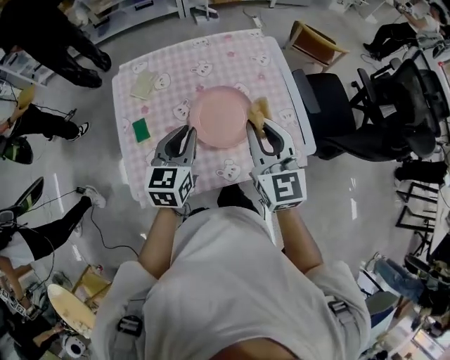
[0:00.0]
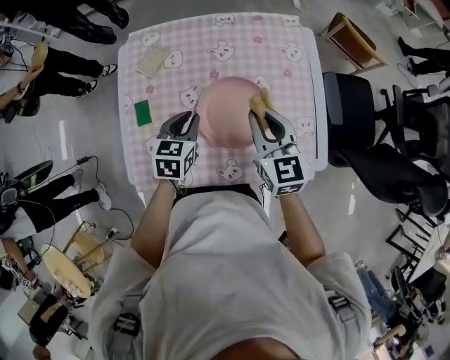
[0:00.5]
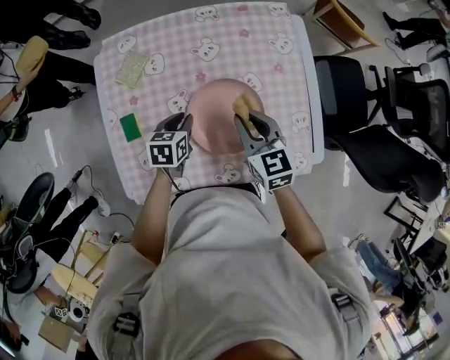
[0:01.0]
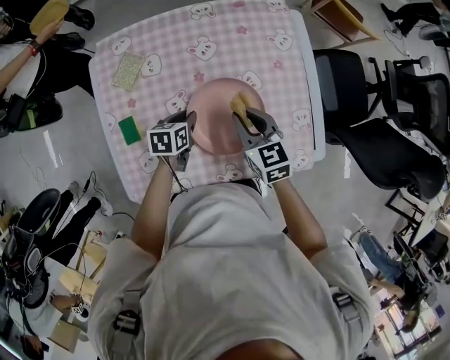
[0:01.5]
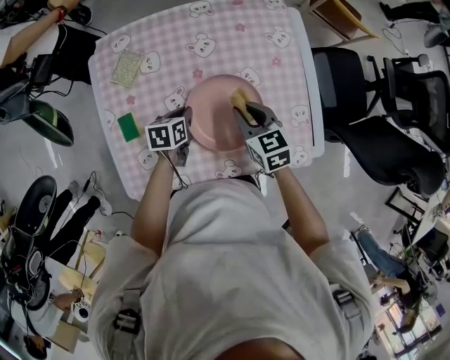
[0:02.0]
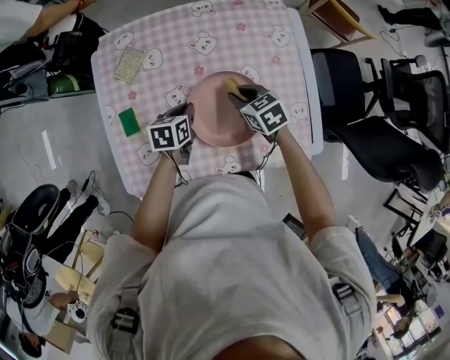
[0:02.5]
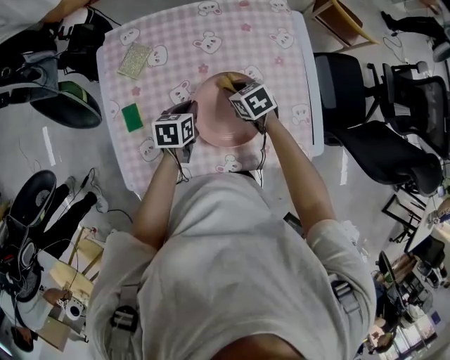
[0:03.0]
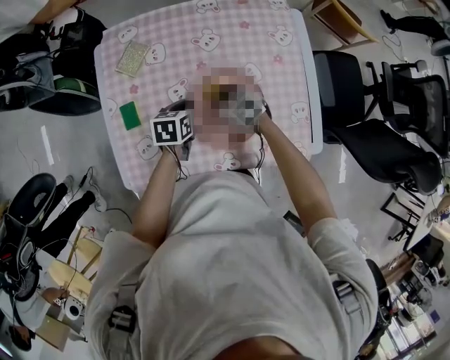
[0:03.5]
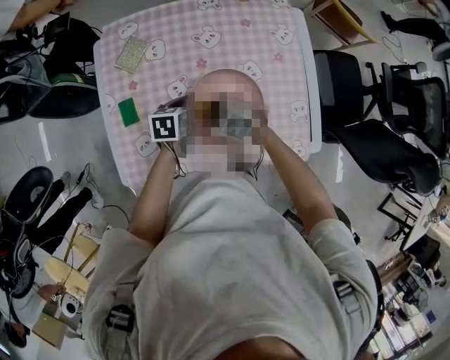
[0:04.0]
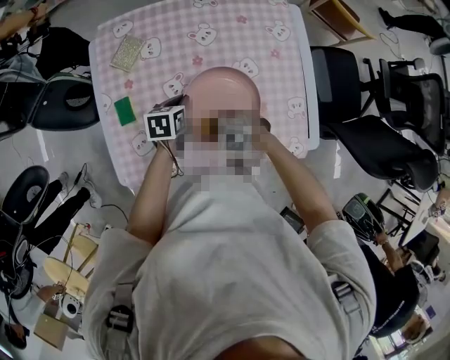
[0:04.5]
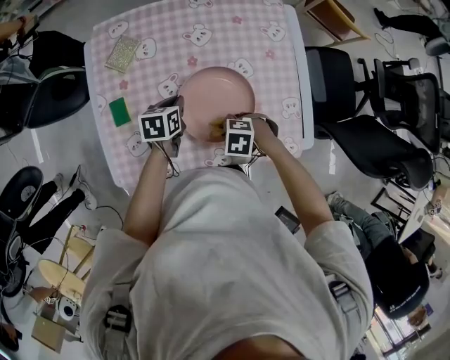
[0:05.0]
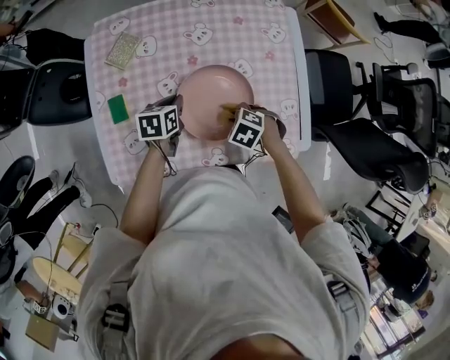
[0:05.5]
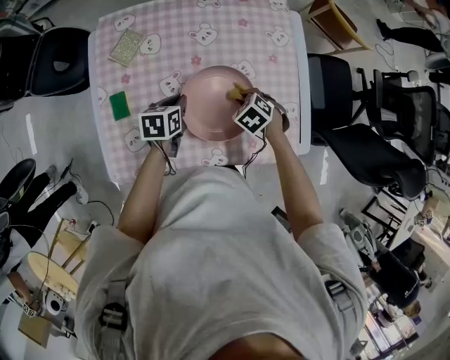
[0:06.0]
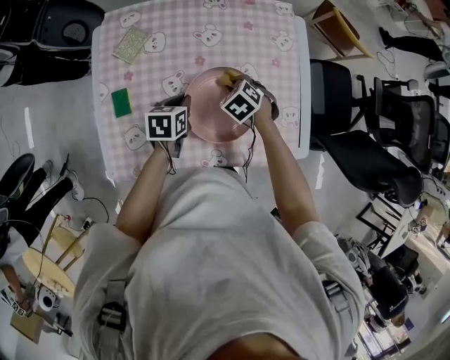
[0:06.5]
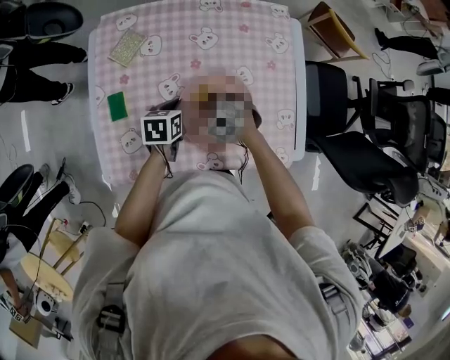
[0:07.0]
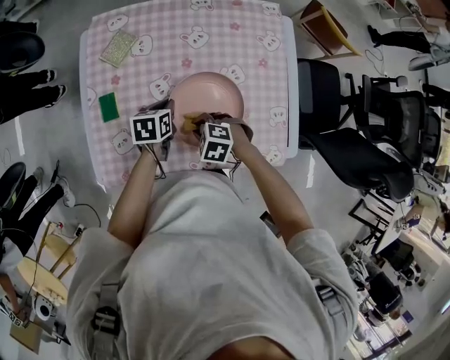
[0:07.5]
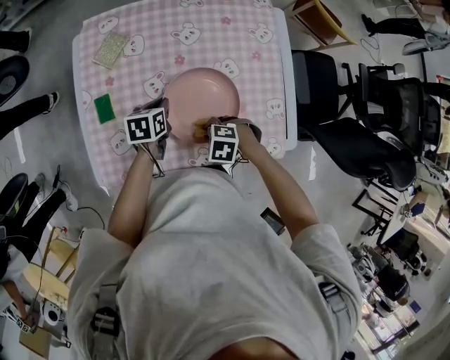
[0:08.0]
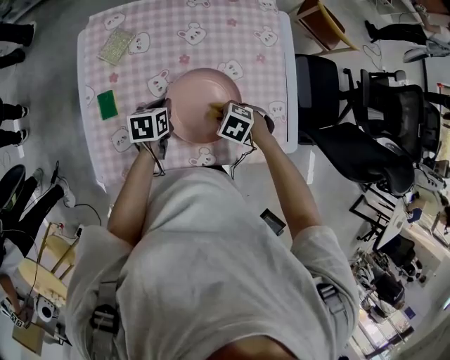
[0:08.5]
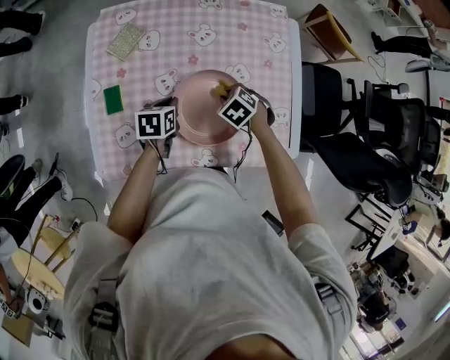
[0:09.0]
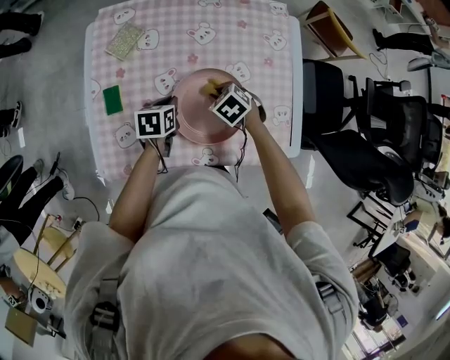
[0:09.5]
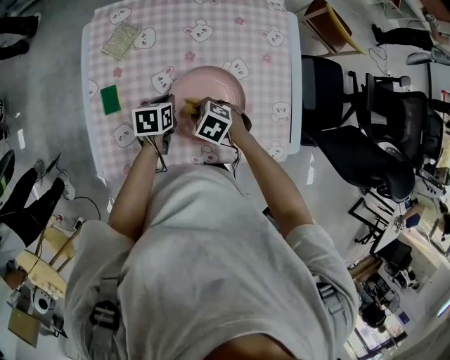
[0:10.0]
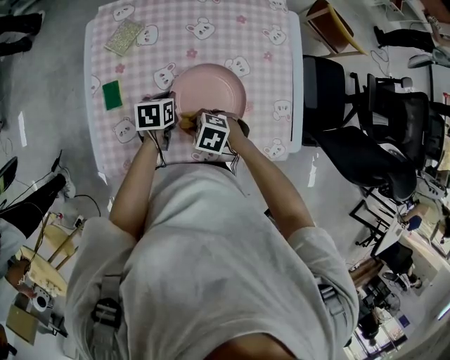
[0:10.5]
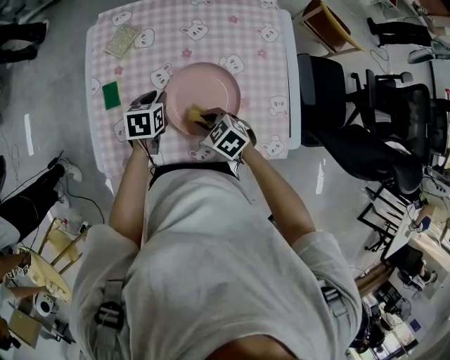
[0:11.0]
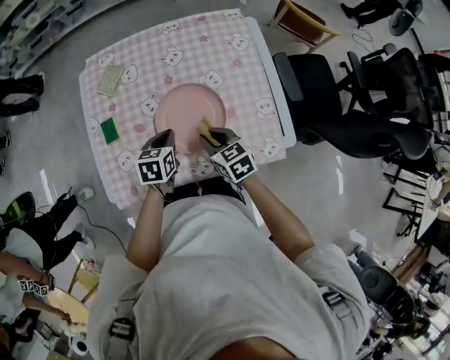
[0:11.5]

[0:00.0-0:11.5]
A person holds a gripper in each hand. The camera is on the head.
0:00.0 to 0:02.0: The right gripper moves downward and forward, about 25 cm, and angles its fingers downward, by some 30 degrees, while the left gripper is displaced downward by roughly 25 cm, and turns by some 40 degrees.
0:02.0 to 0:04.0: The right gripper ends up about 15 cm from where it was, and swivels approximately 50 degrees.
0:04.0 to 0:06.0: The right gripper shifts by about 15 cm, and rotates approximately 30 degrees.
0:06.0 to 0:07.5: The right gripper ends up approximately 15 cm from where it was, and swivels about 30 degrees.
0:07.5 to 0:09.5: The right gripper moves some 10 cm, and swivels approximately 30 degrees.
0:09.5 to 0:11.5: The right gripper moves some 15 cm, and rotates some 40 degrees; the left gripper changes place by some 10 cm.

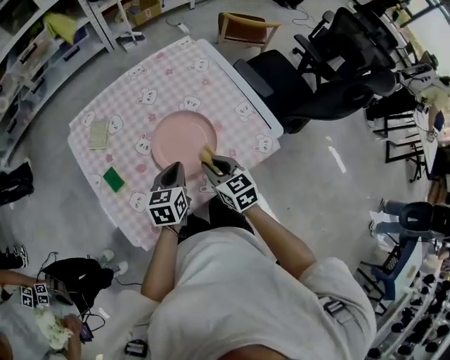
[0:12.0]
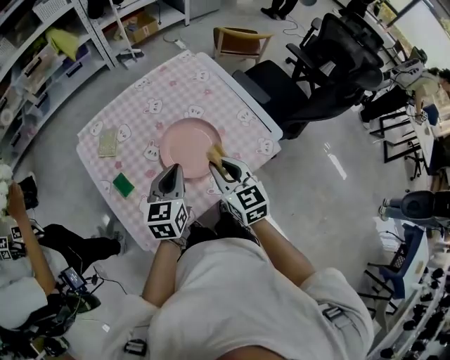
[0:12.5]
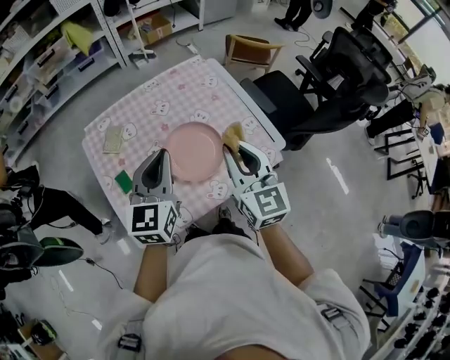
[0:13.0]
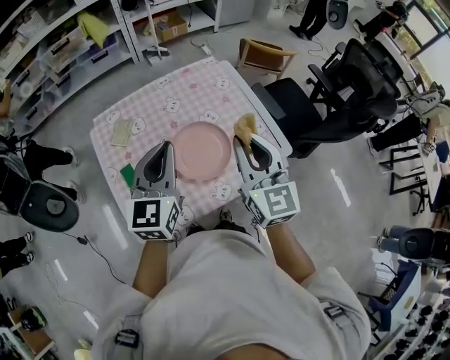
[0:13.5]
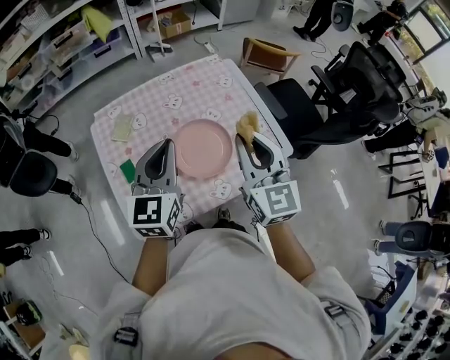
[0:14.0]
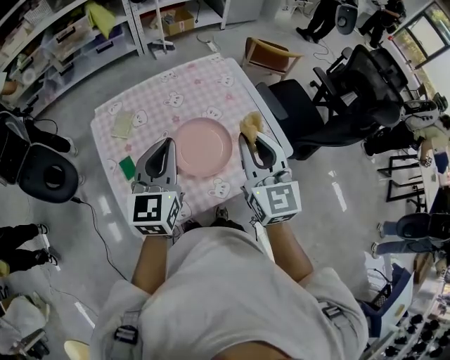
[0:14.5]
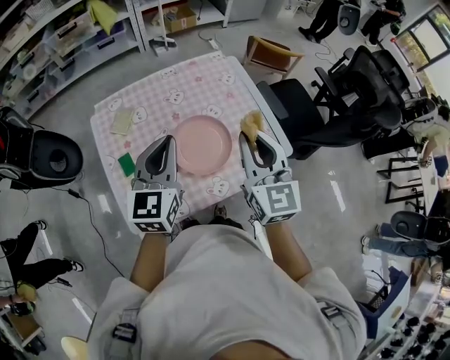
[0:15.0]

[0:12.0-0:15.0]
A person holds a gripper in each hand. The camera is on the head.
0:12.0 to 0:13.5: The two grippers go approximately 25 cm upward. The left gripper rotates some 30 degrees, while the right gripper angles its fingers upward, by roughly 30 degrees.
0:13.5 to 0:15.0: The grippers move only a little.

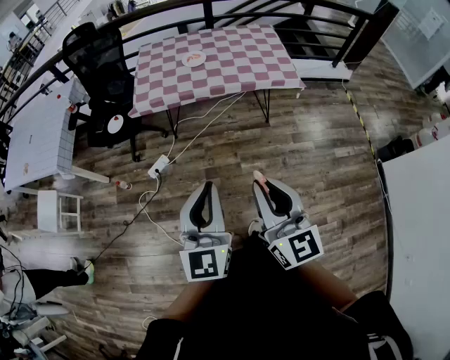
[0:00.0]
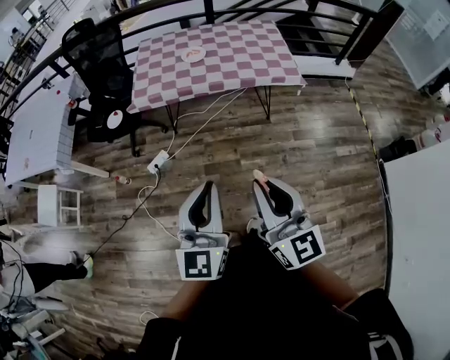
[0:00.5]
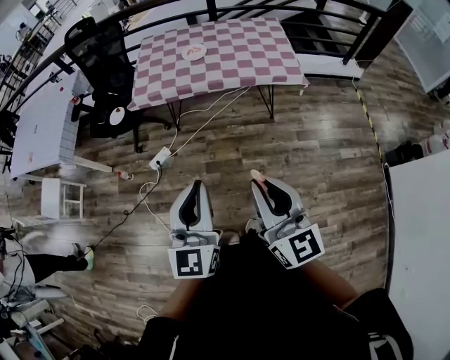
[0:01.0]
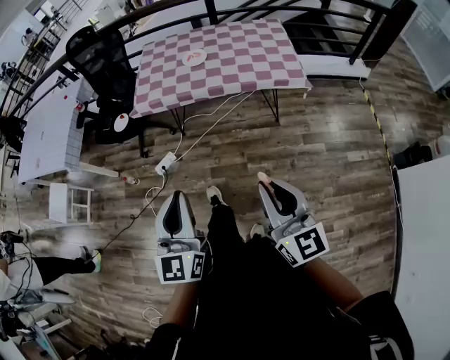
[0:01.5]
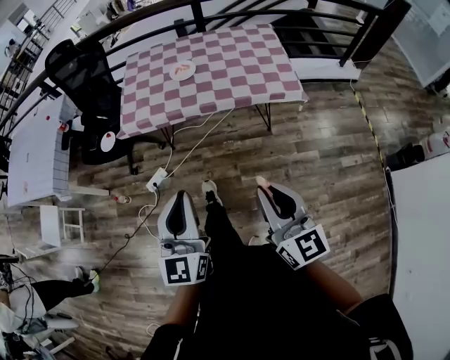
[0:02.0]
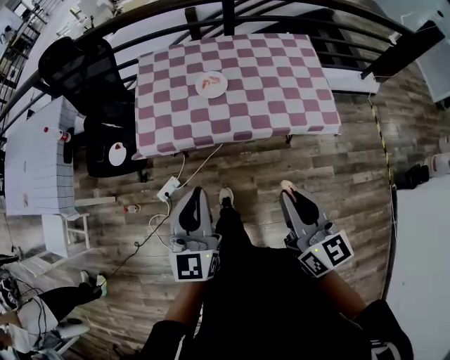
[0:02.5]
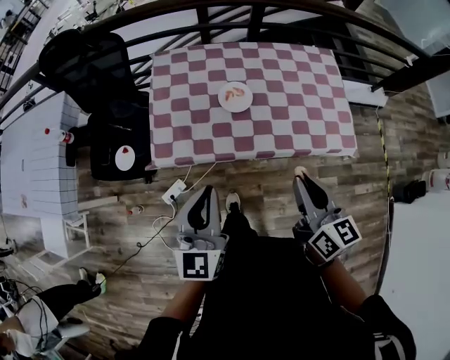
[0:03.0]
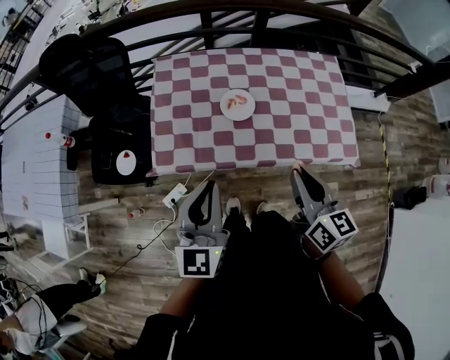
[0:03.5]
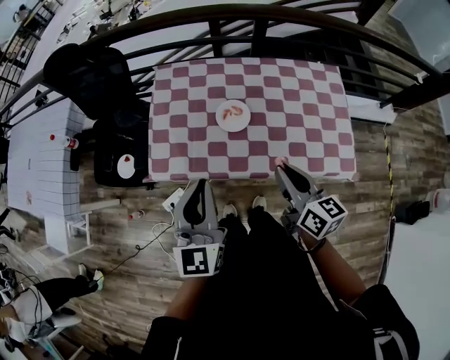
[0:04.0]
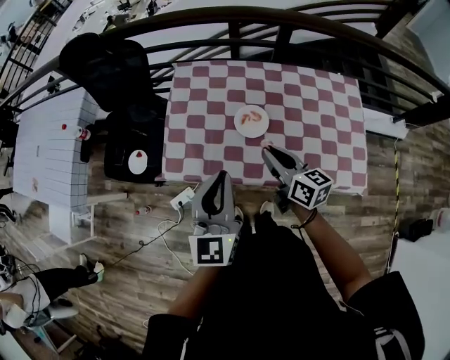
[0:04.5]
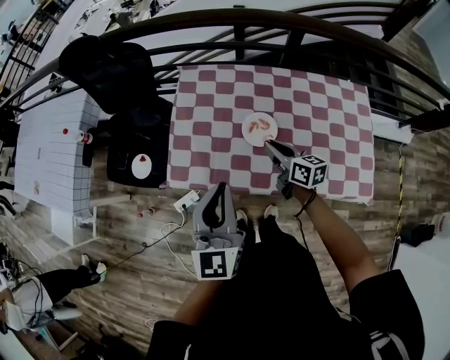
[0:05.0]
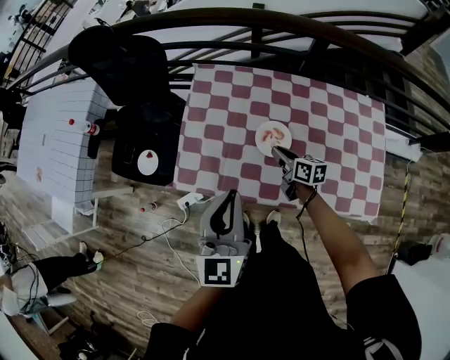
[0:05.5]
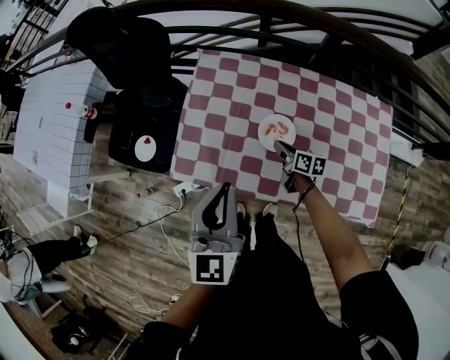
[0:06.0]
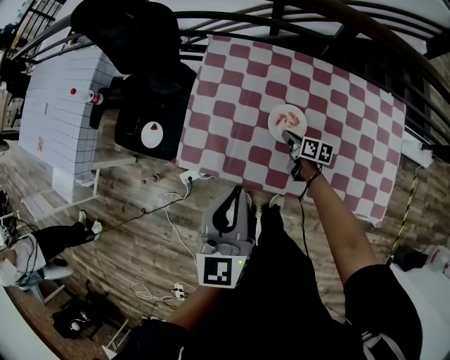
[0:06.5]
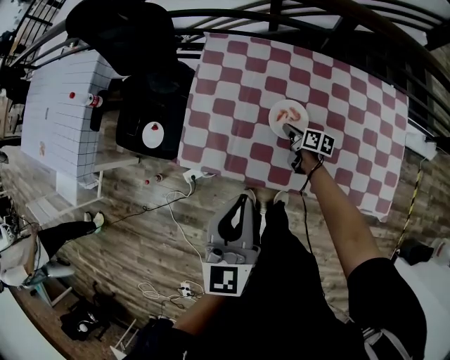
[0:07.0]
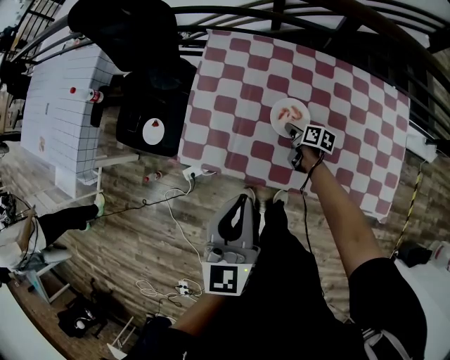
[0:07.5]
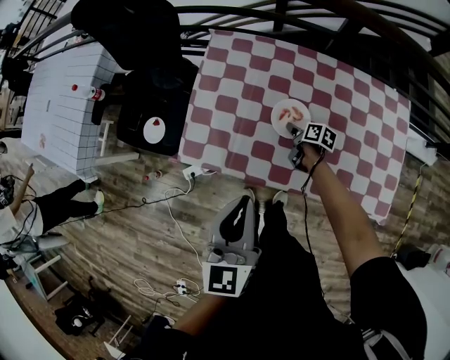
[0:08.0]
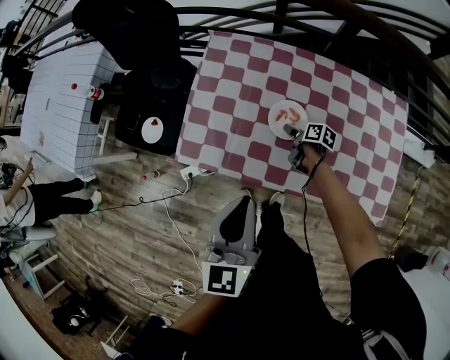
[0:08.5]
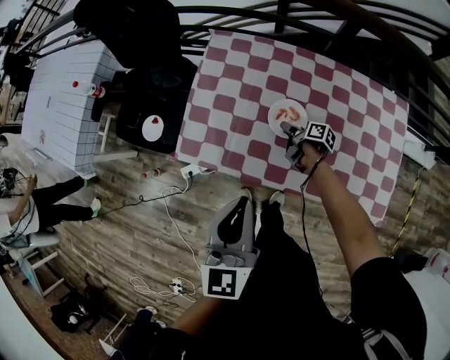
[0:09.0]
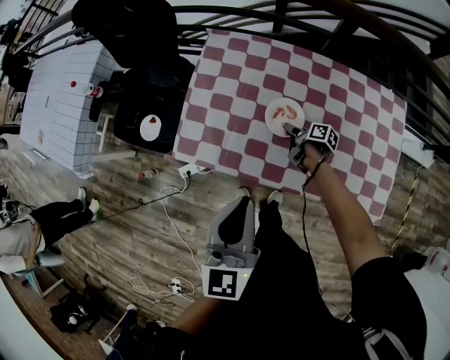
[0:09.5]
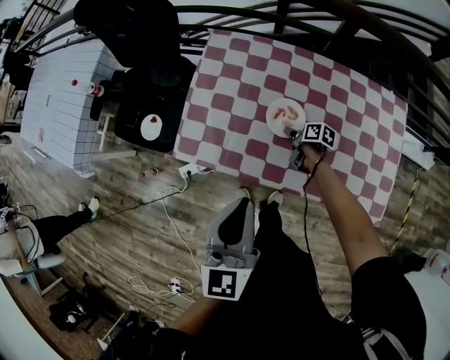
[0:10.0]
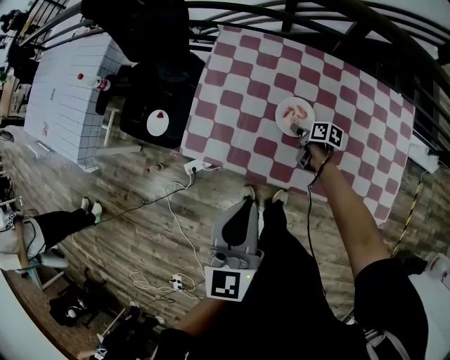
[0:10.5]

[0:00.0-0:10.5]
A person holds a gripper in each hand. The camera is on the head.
0:00.0 to 0:02.0: The right gripper travels forward, to the right and downward by approximately 20 cm. Meanwhile the left gripper is displaced forward by approximately 15 cm.
0:02.0 to 0:04.0: The two grippers travel together, forward, some 50 cm. The right gripper rotates about 30 degrees.
0:04.0 to 0:06.5: The left gripper heads forward and downward, covering roughly 10 cm, while the right gripper shifts some 40 cm downward and forward, and swivels approximately 30 degrees.
0:06.5 to 0:08.5: The right gripper opens.
0:08.5 to 0:10.5: The grippers make only small movements.

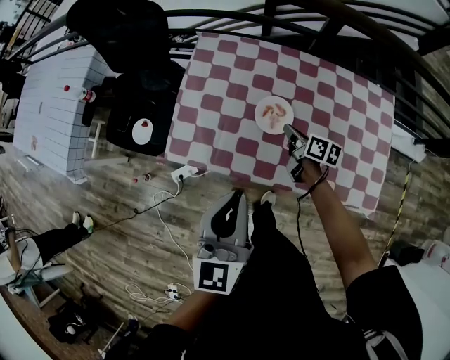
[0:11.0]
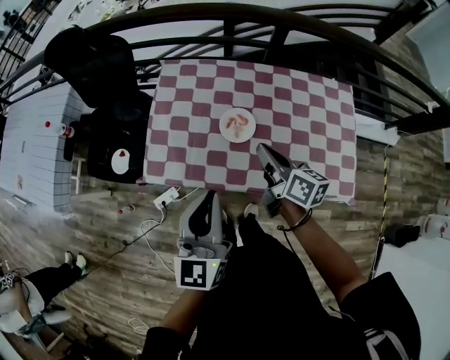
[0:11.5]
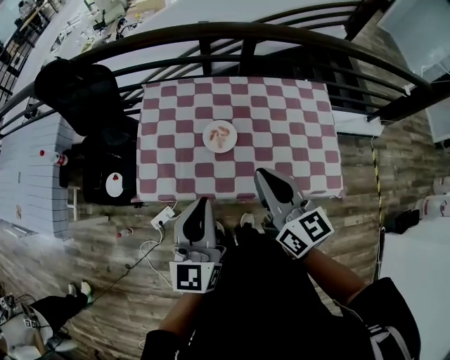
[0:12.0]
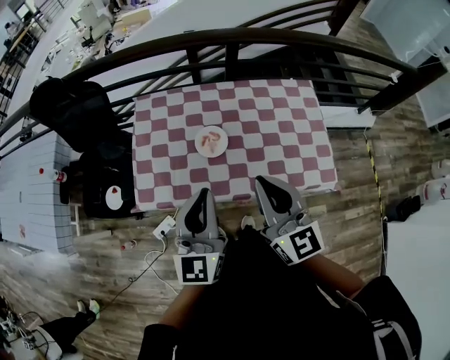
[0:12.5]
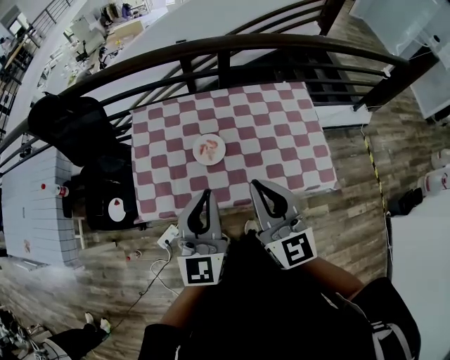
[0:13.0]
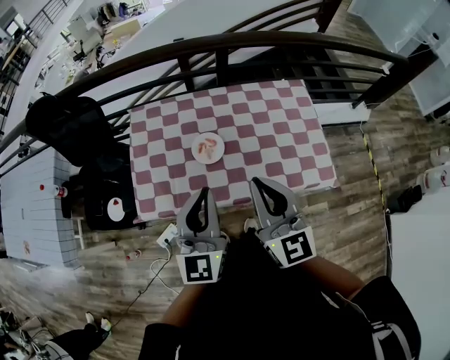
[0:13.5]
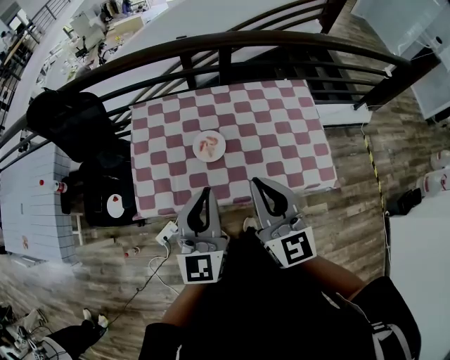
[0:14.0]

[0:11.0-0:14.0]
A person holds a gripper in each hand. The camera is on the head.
0:11.0 to 0:12.5: The right gripper goes roughly 40 cm upward and backward, and swivels approximately 60 degrees; the left gripper is displaced upward and to the right by about 10 cm.
0:12.5 to 0:14.0: The grippers move only a little.
